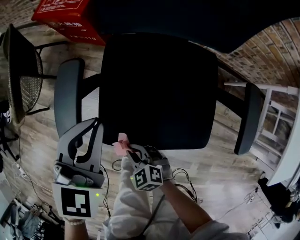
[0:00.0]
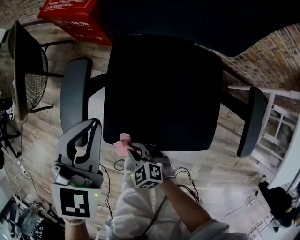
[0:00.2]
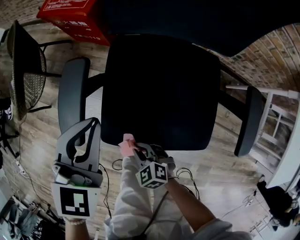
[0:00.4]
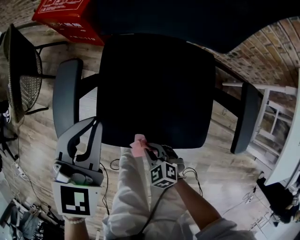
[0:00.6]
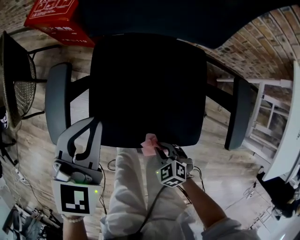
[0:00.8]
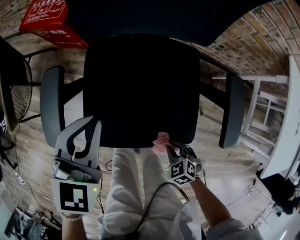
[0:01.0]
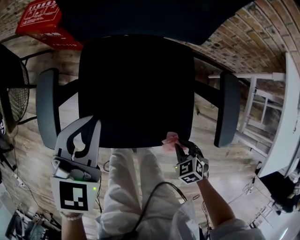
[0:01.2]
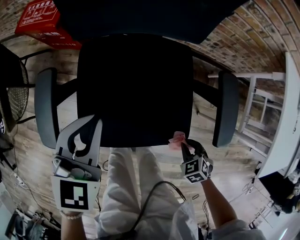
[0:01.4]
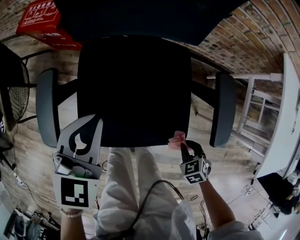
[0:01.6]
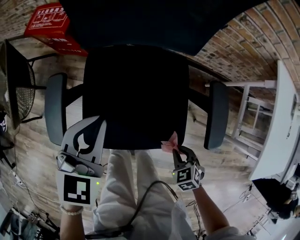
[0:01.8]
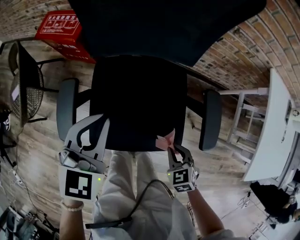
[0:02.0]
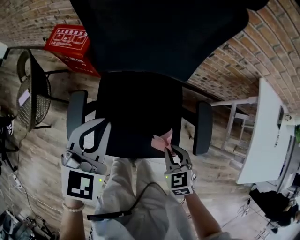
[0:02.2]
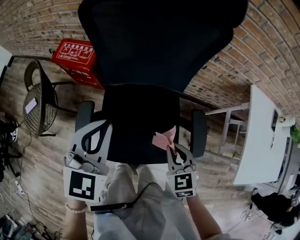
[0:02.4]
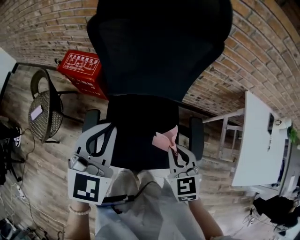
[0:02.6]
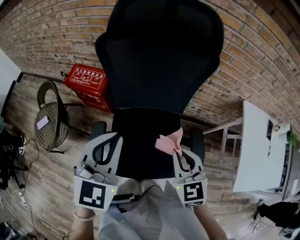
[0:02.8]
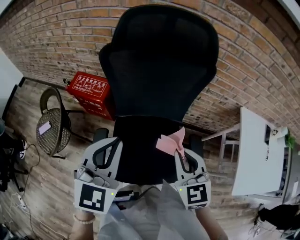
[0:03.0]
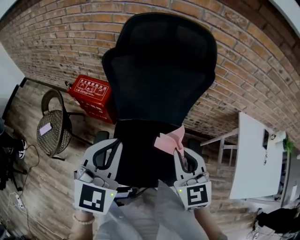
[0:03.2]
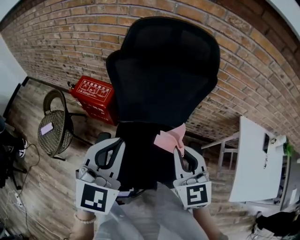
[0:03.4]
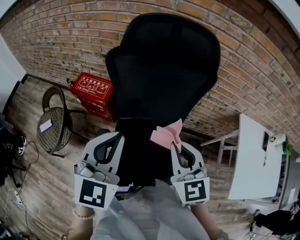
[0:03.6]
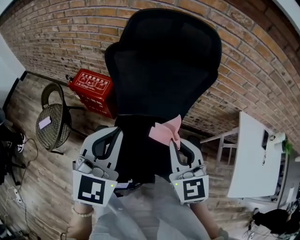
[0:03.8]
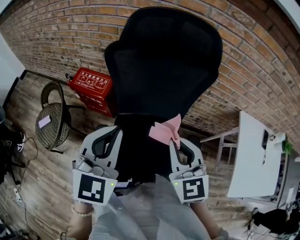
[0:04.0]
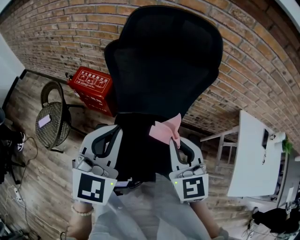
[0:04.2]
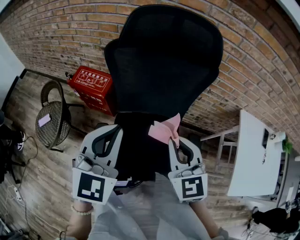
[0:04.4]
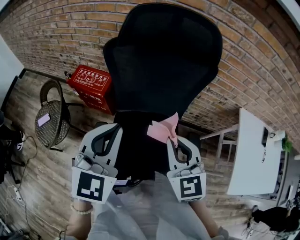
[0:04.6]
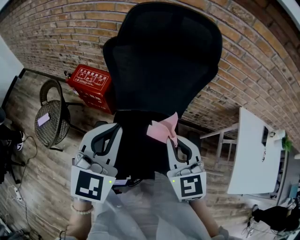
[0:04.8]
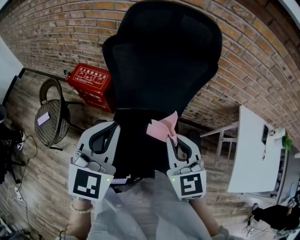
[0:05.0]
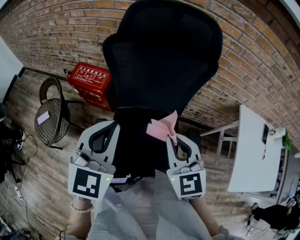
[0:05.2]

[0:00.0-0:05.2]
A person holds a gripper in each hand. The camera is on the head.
0.0 to 1.8 s: The left gripper ends up some 10 cm from where it was, while the right gripper moves some 30 cm, and changes its angle by some 30 degrees.
1.8 to 3.4 s: The grippers both shift upward by roughly 40 cm. The left gripper swivels roughly 20 degrees; the right gripper tips its fingers upward by roughly 50 degrees.
3.4 to 5.2 s: The grippers make only small movements.

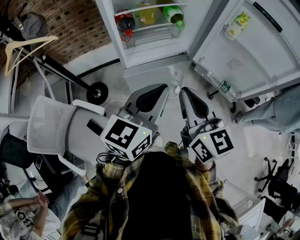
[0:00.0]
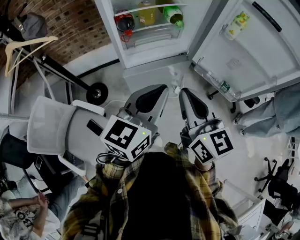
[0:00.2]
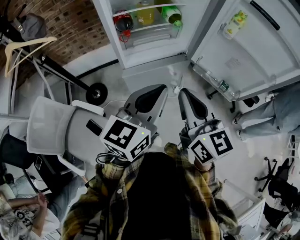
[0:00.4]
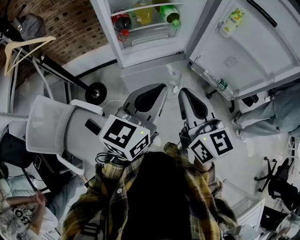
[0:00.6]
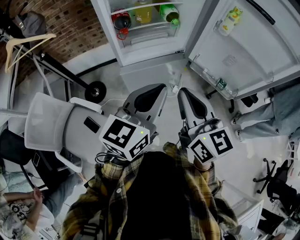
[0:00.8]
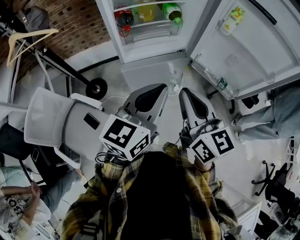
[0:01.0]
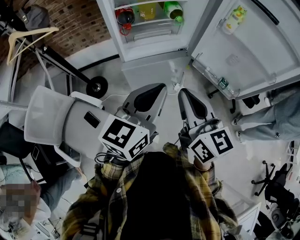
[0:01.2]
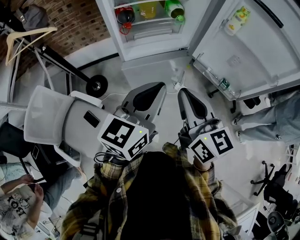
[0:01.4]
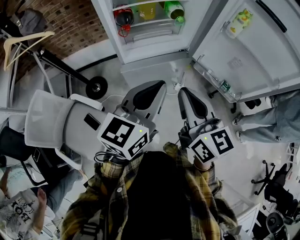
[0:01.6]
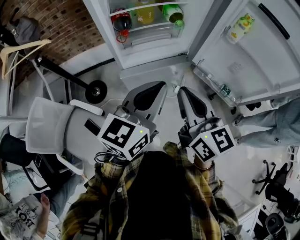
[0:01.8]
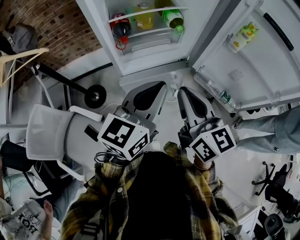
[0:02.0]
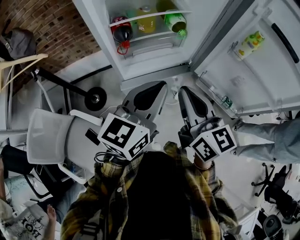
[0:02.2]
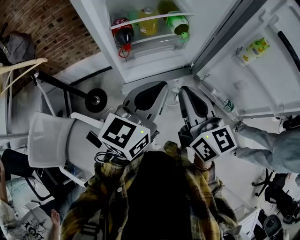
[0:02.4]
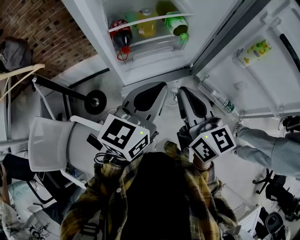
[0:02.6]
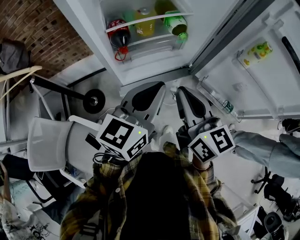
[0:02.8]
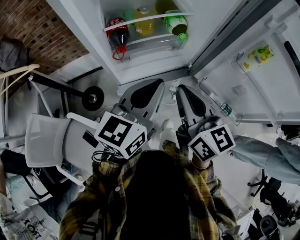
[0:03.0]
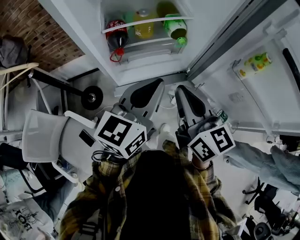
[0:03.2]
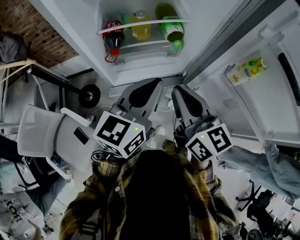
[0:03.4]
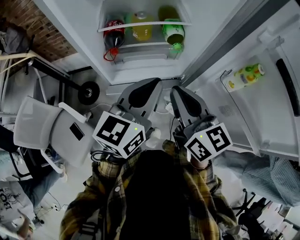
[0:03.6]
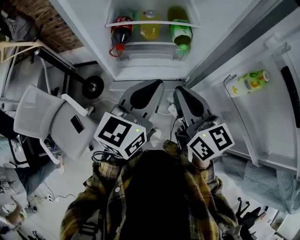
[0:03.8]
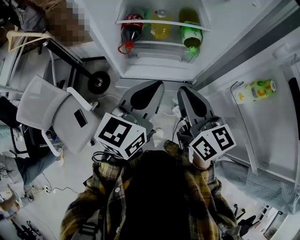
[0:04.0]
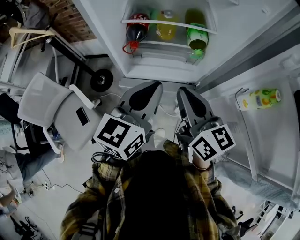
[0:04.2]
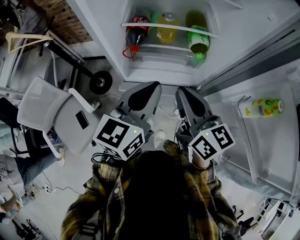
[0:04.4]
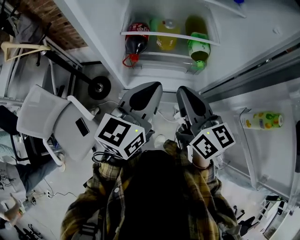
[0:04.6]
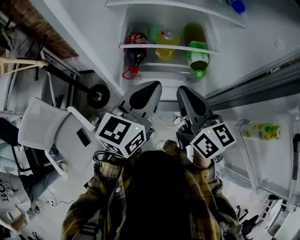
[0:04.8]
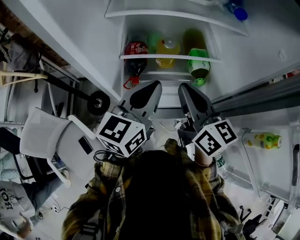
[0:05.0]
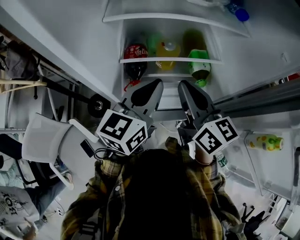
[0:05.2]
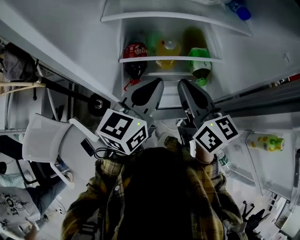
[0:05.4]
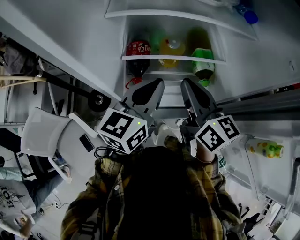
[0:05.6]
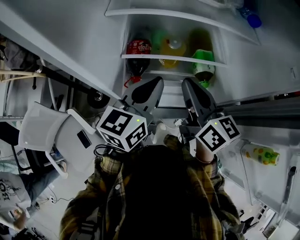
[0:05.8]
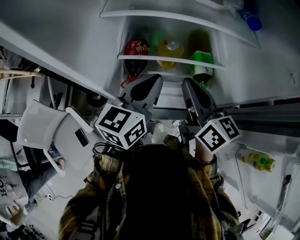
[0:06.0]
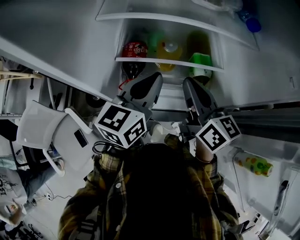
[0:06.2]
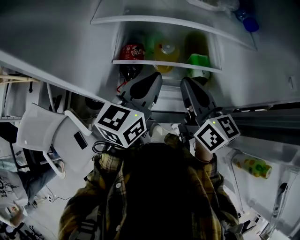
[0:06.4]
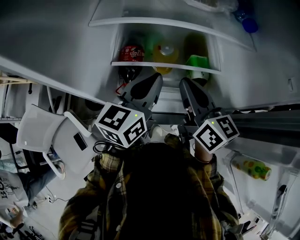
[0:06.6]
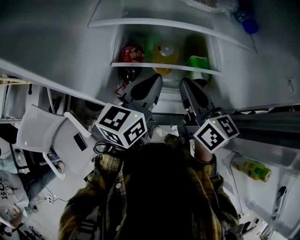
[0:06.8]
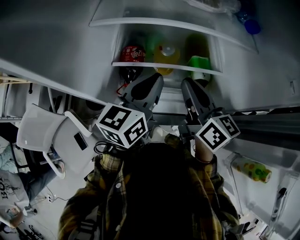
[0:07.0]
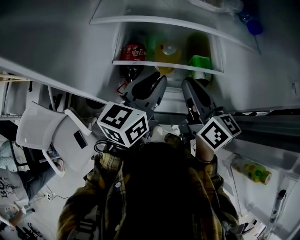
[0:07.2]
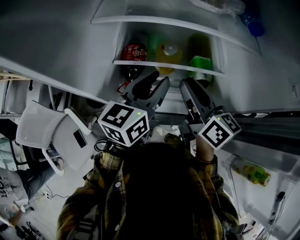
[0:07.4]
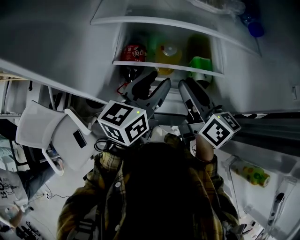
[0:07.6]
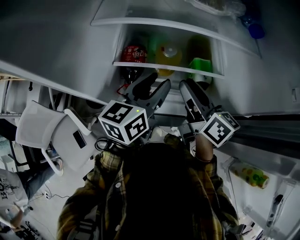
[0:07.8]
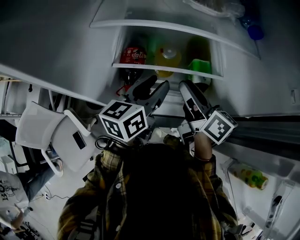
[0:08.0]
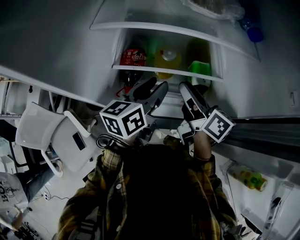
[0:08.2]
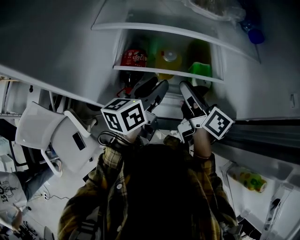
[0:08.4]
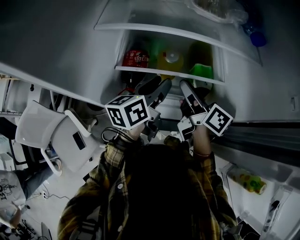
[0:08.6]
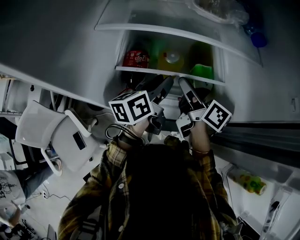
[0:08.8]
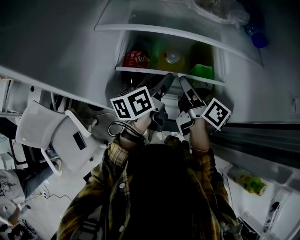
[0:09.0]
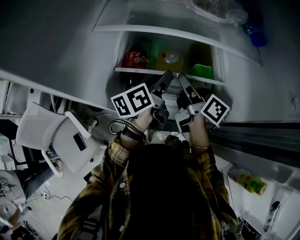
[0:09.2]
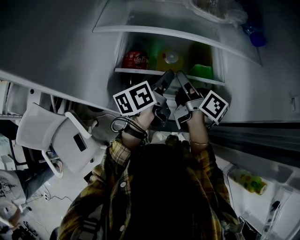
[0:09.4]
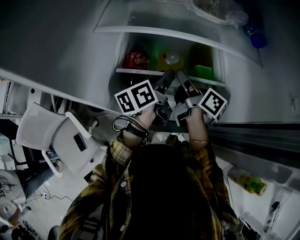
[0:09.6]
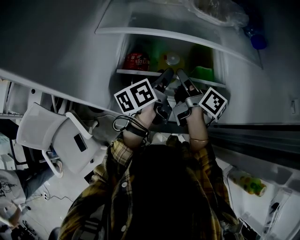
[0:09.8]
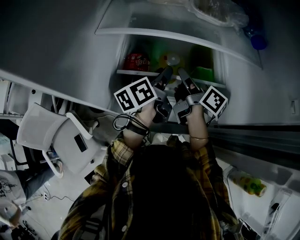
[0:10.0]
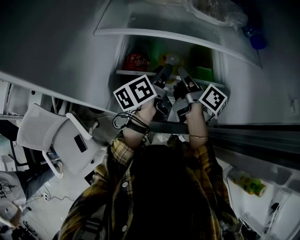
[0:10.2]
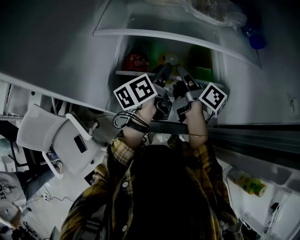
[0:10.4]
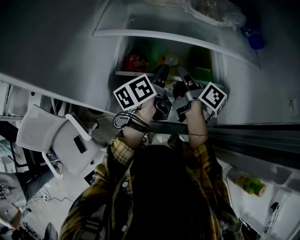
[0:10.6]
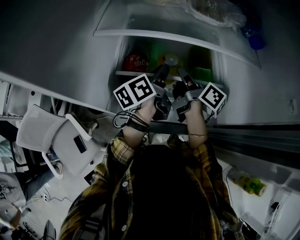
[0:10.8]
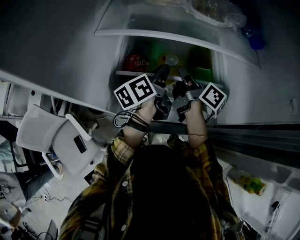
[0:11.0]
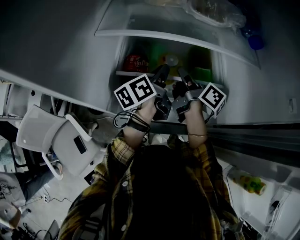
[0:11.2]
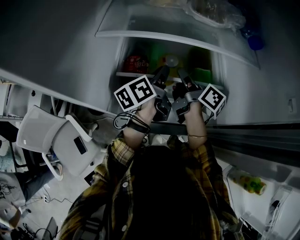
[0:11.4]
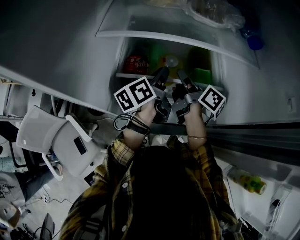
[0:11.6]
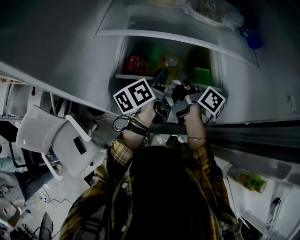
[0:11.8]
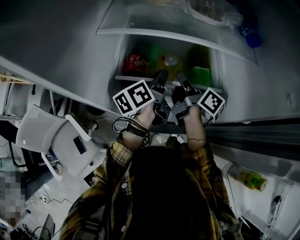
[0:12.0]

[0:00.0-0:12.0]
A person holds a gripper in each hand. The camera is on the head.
0.0 to 1.6 s: The grippers move only a little.
1.6 to 3.0 s: Both grippers travel together forward, some 15 cm.
3.0 to 4.4 s: The right gripper shifts about 5 cm forward, and changes its angle by approximately 20 degrees, while the left gripper travels to the right and back again, roughly 10 cm each way, and rotates roughly 20 degrees.
4.4 to 6.0 s: The two grippers go about 20 cm forward.
6.0 to 7.6 s: The right gripper opens; the left gripper opens.
7.6 to 9.0 s: Both grippers travel together downward and forward, roughly 10 cm. The left gripper turns by approximately 30 degrees; the right gripper changes its angle by approximately 30 degrees.
9.0 to 10.4 s: The right gripper travels forward by approximately 5 cm.
10.4 to 12.0 s: The left gripper closes its fingers, while the right gripper closes up.

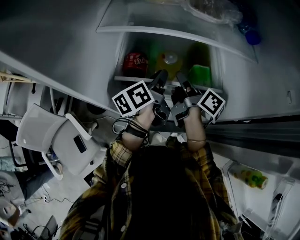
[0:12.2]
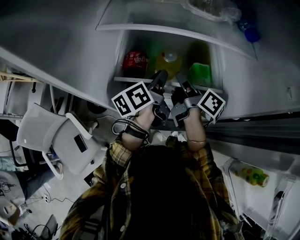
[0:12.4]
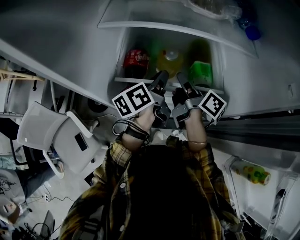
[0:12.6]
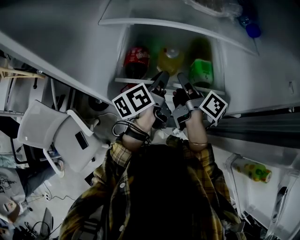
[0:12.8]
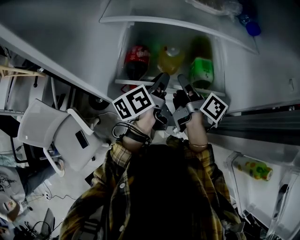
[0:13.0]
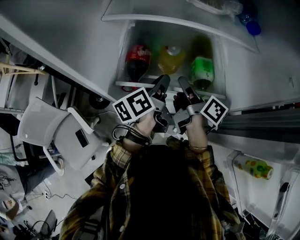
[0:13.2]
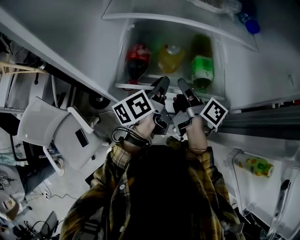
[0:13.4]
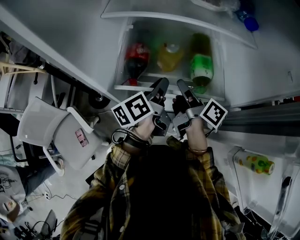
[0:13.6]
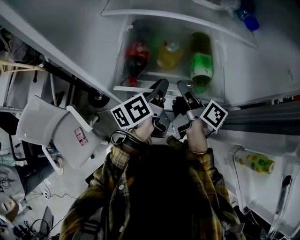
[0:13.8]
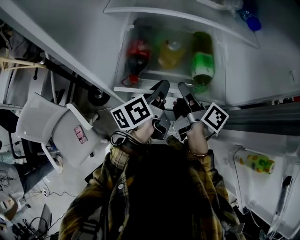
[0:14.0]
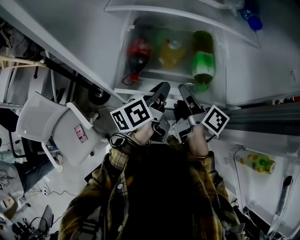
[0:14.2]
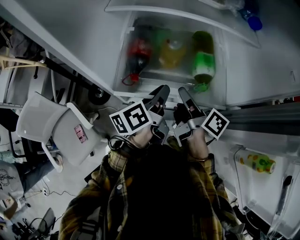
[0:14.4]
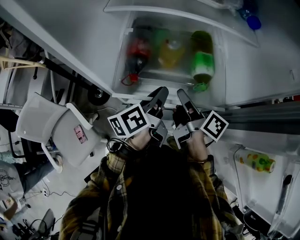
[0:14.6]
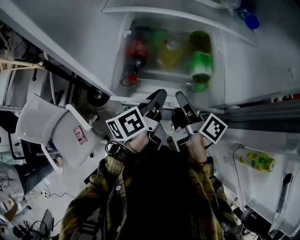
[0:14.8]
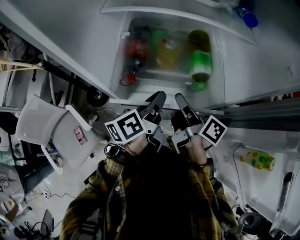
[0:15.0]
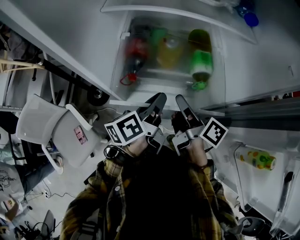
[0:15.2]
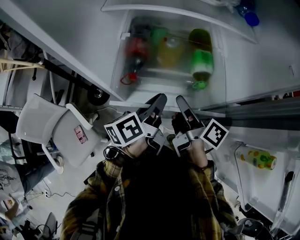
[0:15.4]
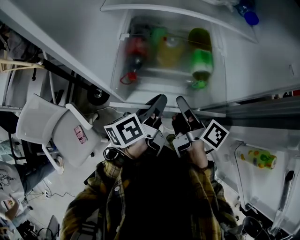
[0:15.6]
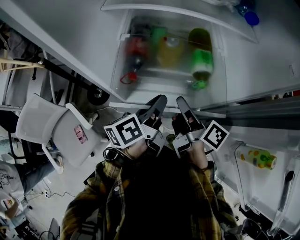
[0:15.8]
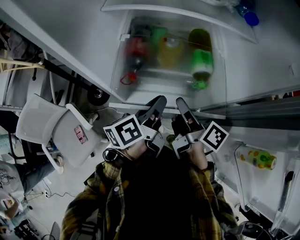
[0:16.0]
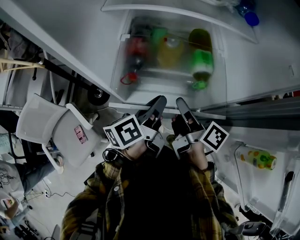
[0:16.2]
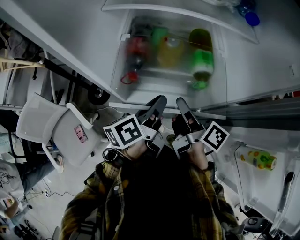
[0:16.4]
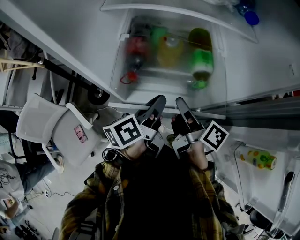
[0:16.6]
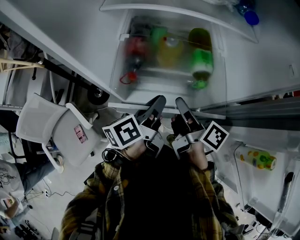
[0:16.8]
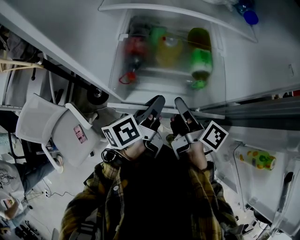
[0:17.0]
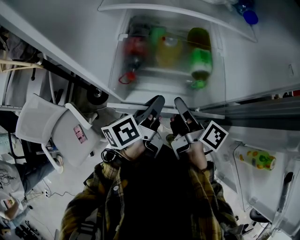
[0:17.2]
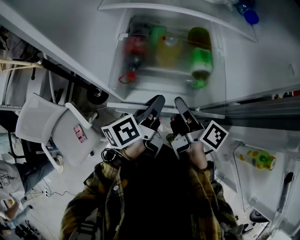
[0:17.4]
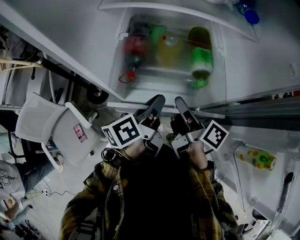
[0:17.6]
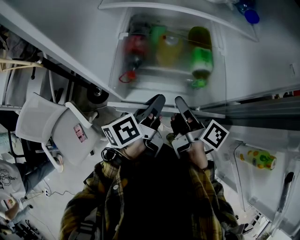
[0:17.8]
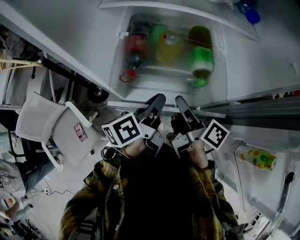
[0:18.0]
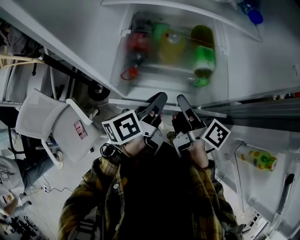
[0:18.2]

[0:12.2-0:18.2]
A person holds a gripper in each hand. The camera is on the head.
12.2 to 13.8 s: Both grippers move backward, some 10 cm.
13.8 to 15.2 s: The two grippers go some 5 cm backward.
15.2 to 18.2 s: Both grippers stay about where they are.

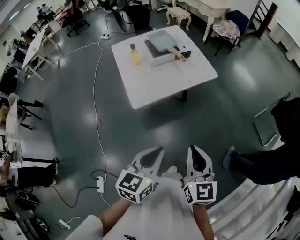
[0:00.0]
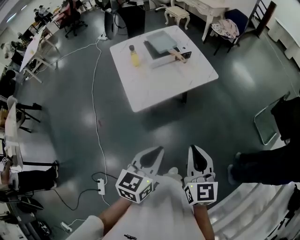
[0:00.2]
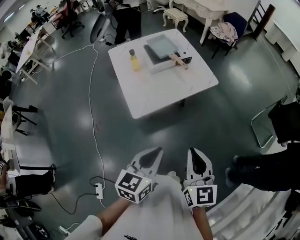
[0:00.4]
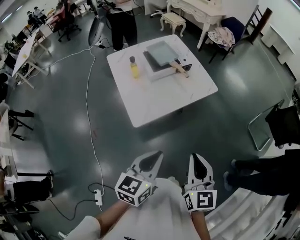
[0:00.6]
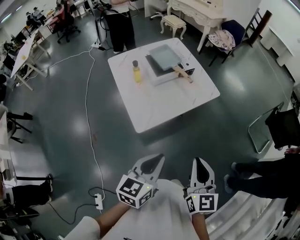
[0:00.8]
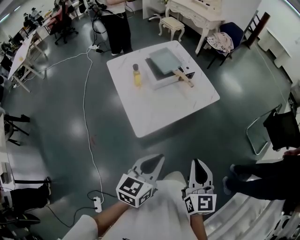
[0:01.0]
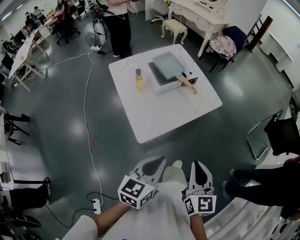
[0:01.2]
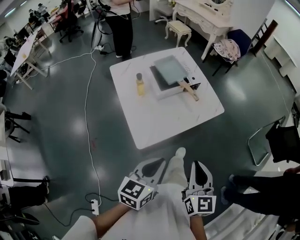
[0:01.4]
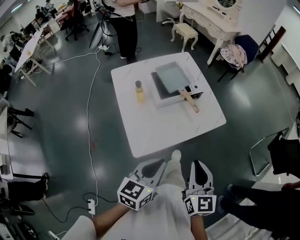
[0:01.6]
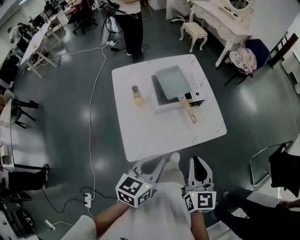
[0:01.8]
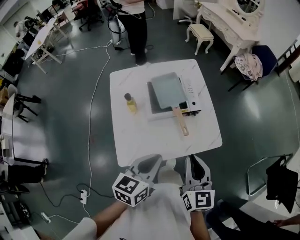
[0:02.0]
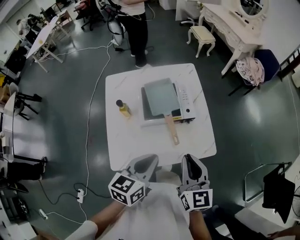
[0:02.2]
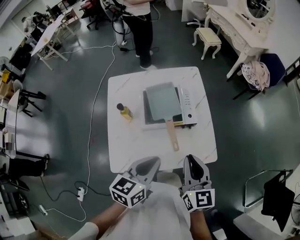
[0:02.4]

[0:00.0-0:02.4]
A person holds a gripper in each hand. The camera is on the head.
0.0 to 1.2 s: Both grippers move forward and to the left, approximately 15 cm.
1.2 to 2.4 s: Both grippers move forward, some 35 cm. The left gripper turns by about 20 degrees. The right gripper turns by some 30 degrees.
